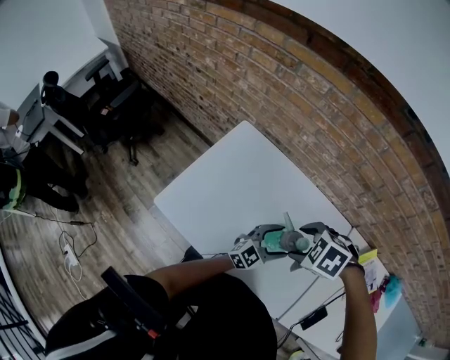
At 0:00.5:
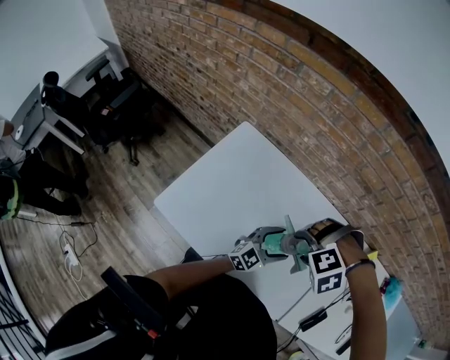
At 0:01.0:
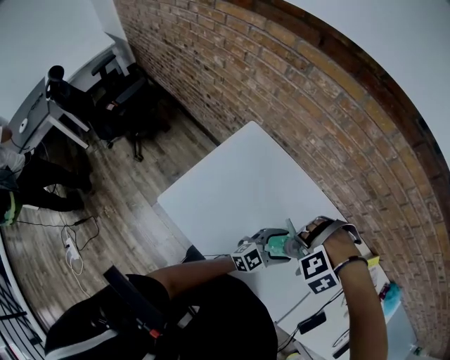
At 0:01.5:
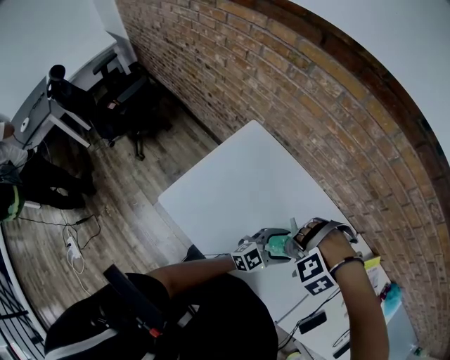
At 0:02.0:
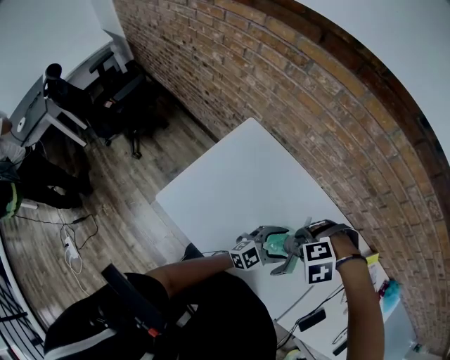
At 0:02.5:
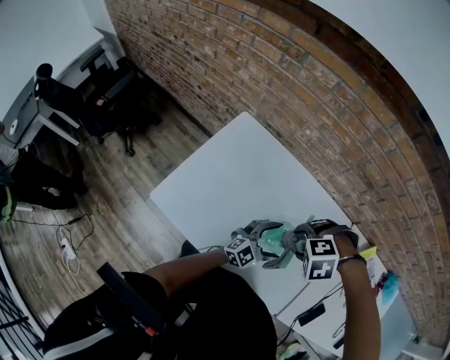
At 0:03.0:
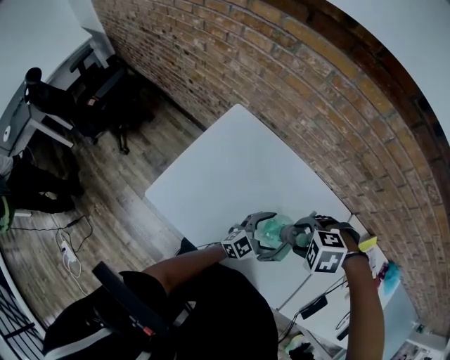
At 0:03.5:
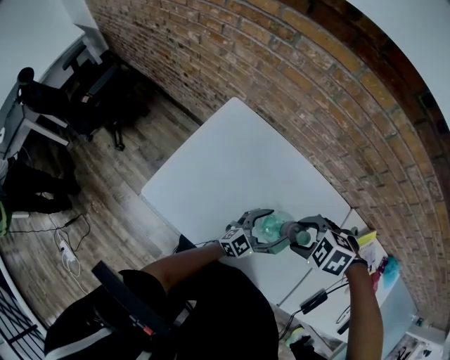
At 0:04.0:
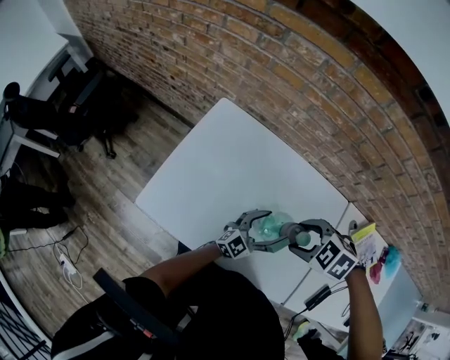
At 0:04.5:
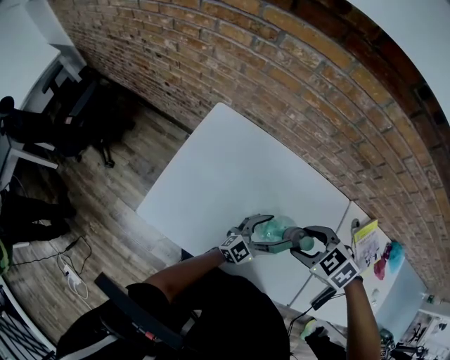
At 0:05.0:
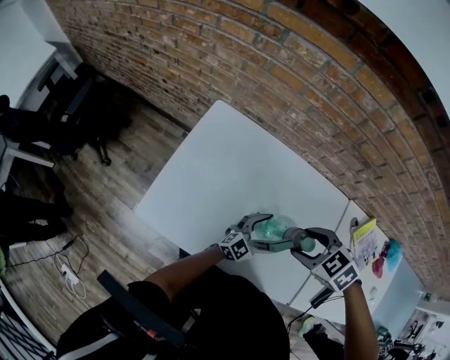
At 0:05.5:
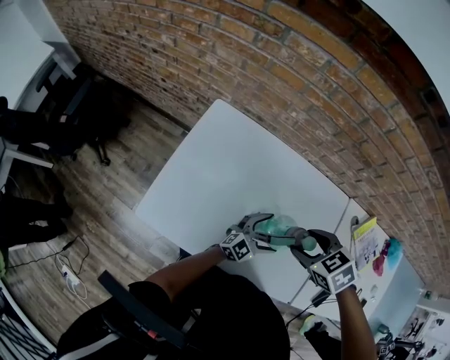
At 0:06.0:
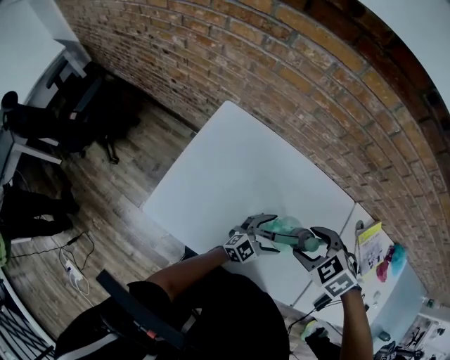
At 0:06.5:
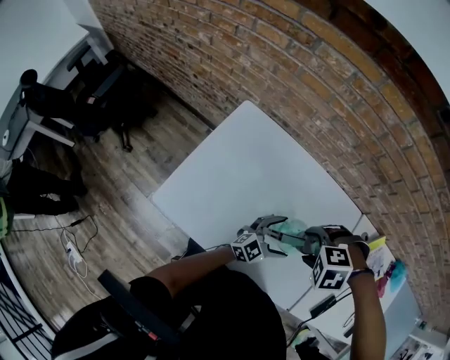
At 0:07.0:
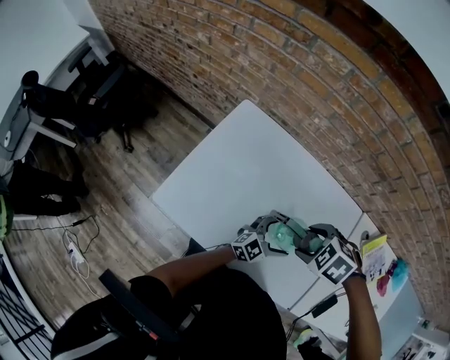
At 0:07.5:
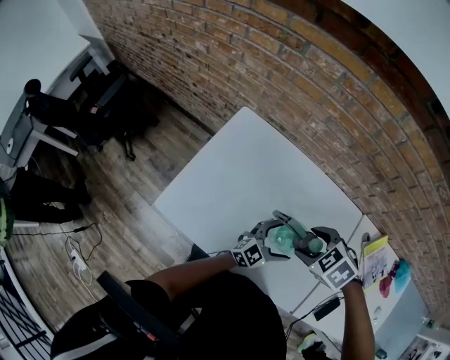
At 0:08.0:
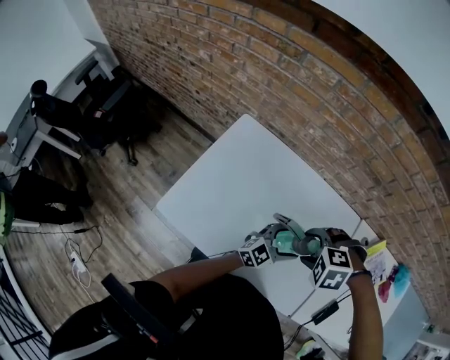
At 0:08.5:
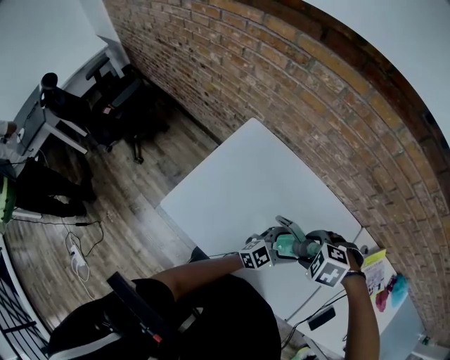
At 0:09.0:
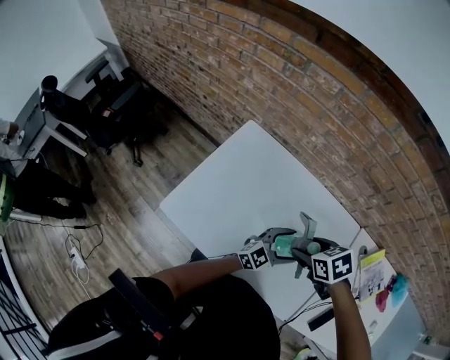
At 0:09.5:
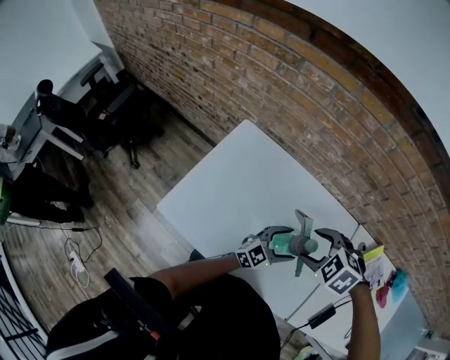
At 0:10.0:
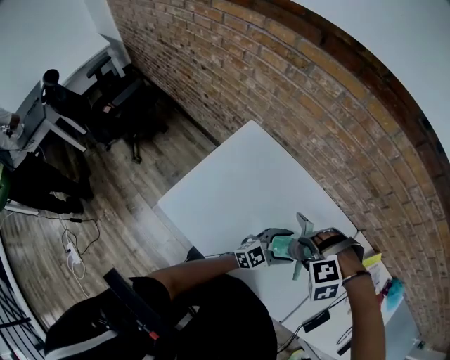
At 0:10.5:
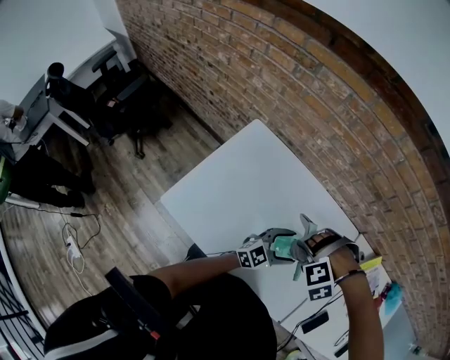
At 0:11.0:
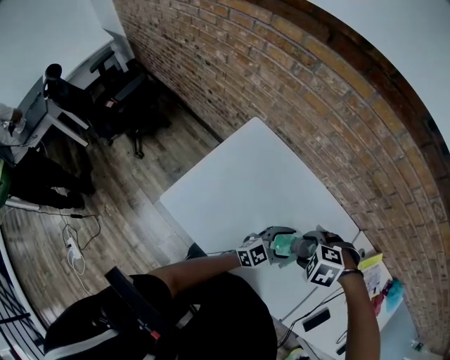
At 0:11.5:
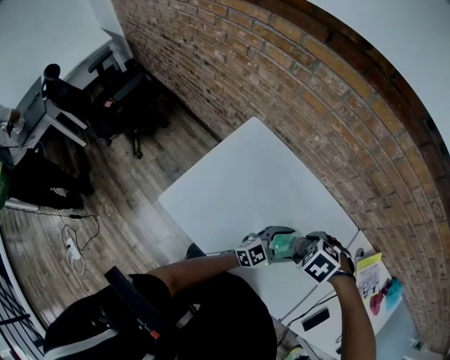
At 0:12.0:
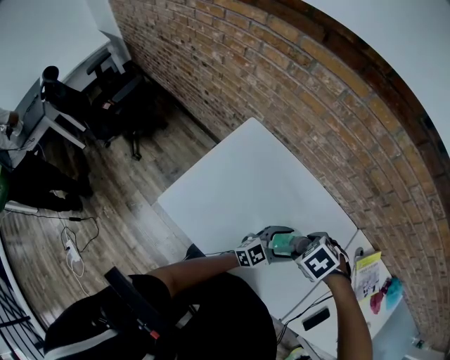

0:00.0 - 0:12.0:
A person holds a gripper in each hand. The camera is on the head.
0:00.0 - 0:02.0: The right gripper rolls counterclockwise, seen from behind, by about 40 degrees.
0:02.0 - 0:04.0: The right gripper rolls clockwise, seen from behind, by roughly 50 degrees. Meanwhile the left gripper is displaced downward by about 5 cm.
0:06.0 - 0:08.0: The right gripper swivels some 40 degrees. The left gripper shifts about 5 cm upward.
0:08.0 - 0:10.0: The right gripper rotates about 30 degrees.
0:10.0 - 0:12.0: The right gripper twists approximately 60 degrees clockwise, seen from behind.

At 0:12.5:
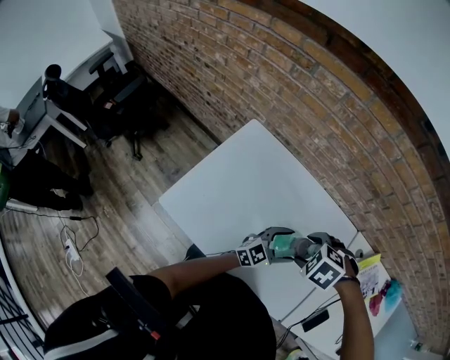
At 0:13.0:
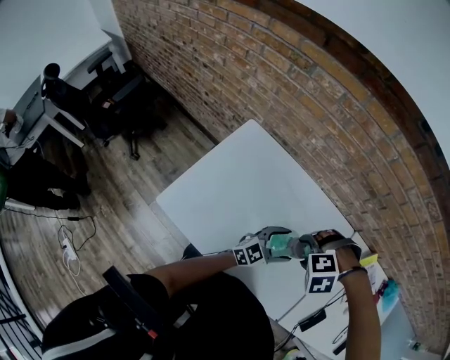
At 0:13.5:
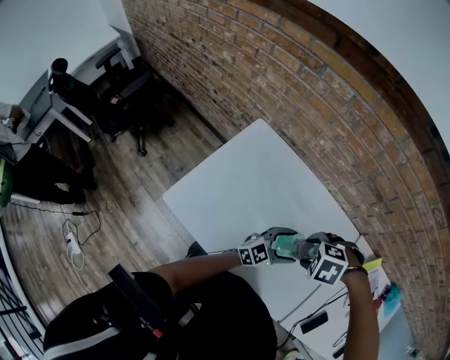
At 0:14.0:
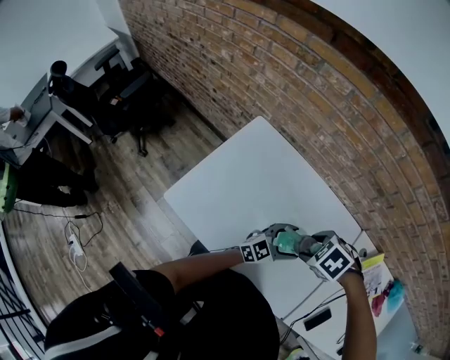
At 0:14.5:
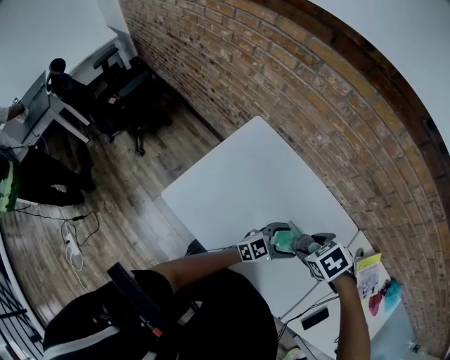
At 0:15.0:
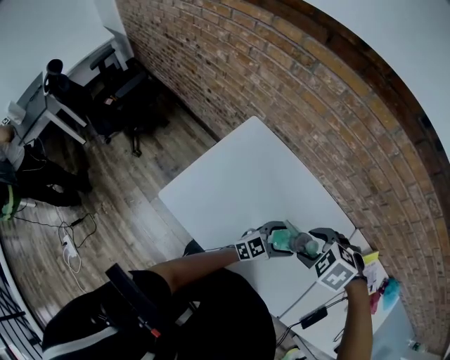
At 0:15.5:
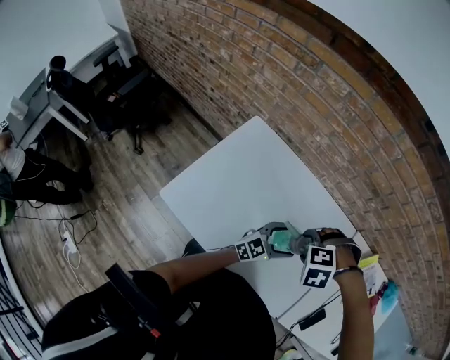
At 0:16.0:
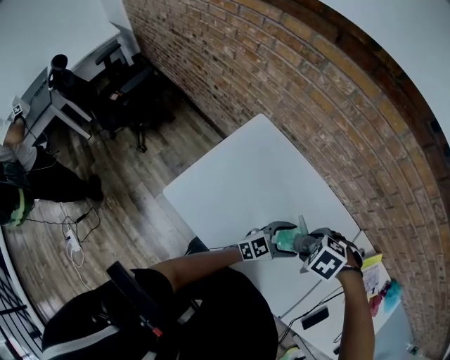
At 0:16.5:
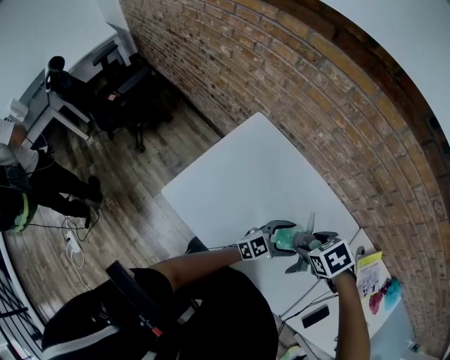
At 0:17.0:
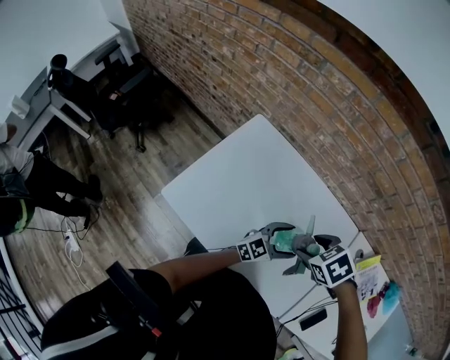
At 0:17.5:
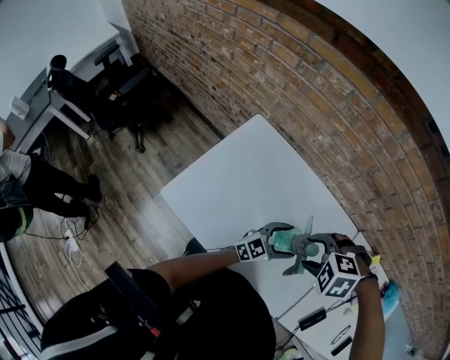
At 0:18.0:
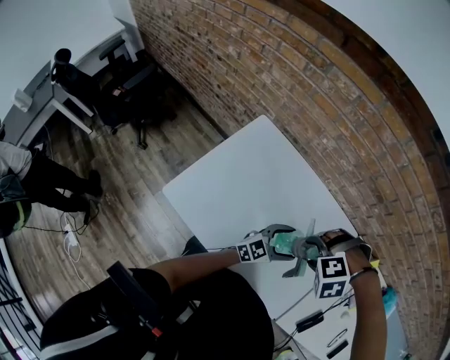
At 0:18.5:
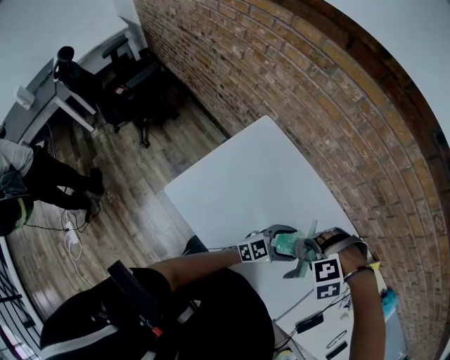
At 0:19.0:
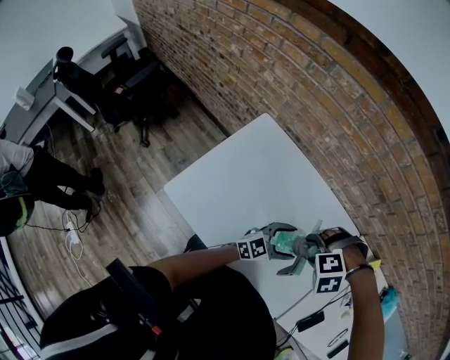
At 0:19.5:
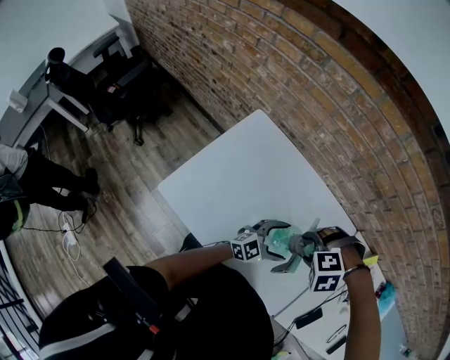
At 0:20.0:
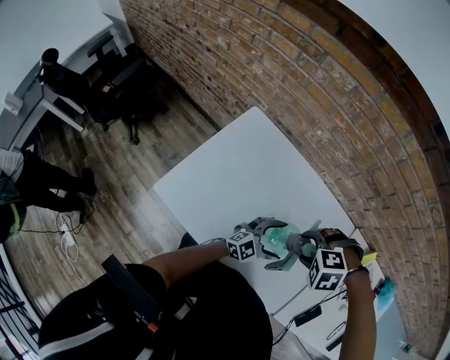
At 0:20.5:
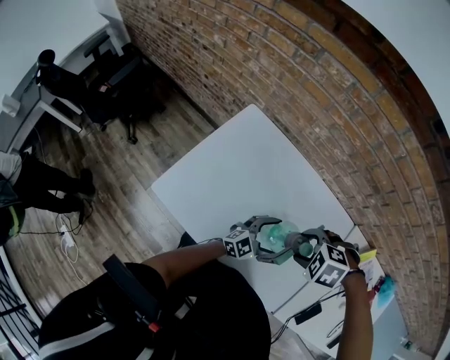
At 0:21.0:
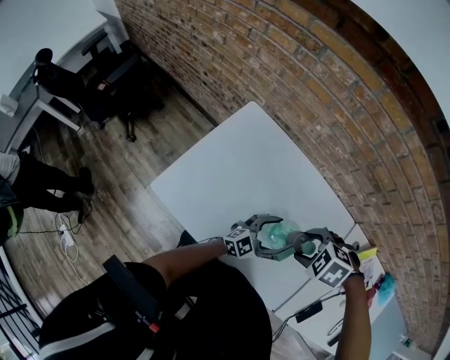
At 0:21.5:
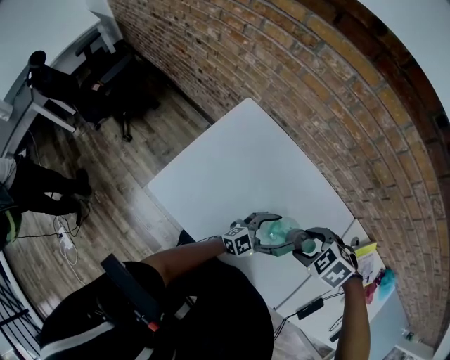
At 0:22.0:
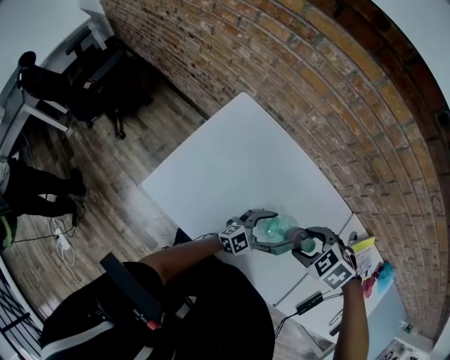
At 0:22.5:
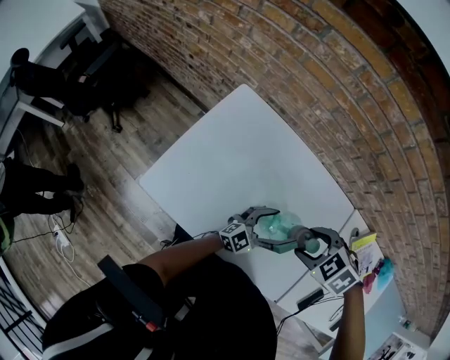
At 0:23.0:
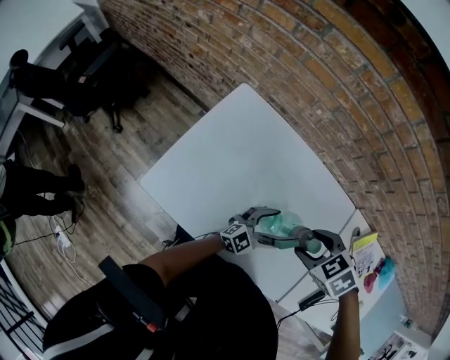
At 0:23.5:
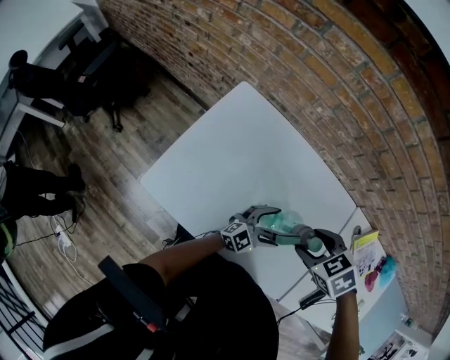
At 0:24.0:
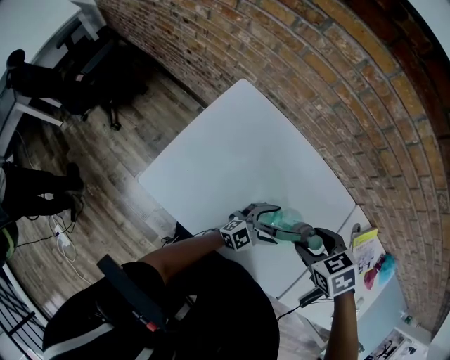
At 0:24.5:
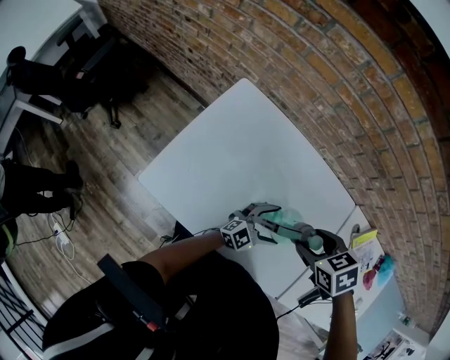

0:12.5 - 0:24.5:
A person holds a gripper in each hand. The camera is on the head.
0:12.5 - 0:14.5: The right gripper rotates some 20 degrees.
0:16.5 - 0:18.5: The right gripper rotates around the line of its fingers by about 80 degrees, counterclockwise from behind.
0:18.5 - 0:20.5: The right gripper rotates around the line of its fingers by some 40 degrees, clockwise from behind.
0:20.5 - 0:22.5: The right gripper rotates approximately 20 degrees.
0:22.5 - 0:24.5: The right gripper rotates some 30 degrees.

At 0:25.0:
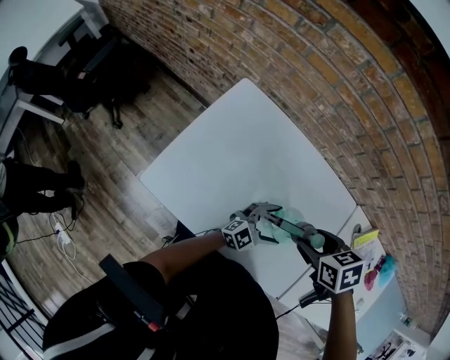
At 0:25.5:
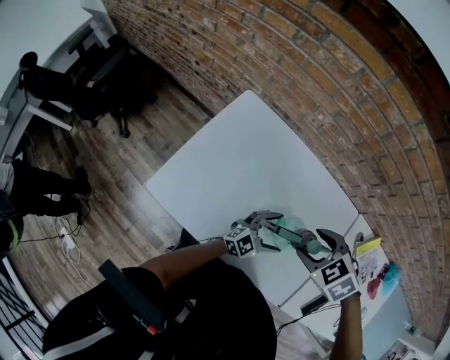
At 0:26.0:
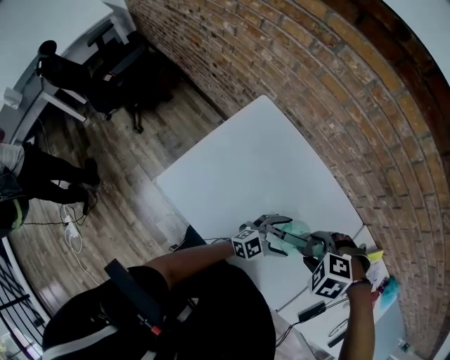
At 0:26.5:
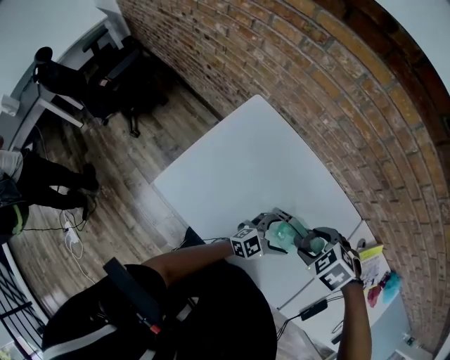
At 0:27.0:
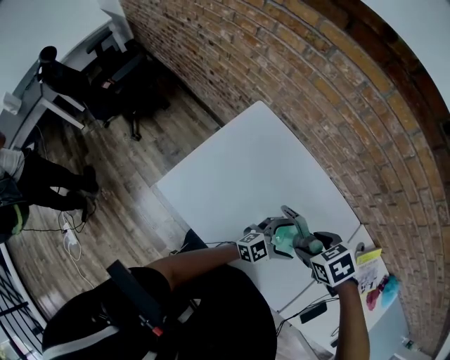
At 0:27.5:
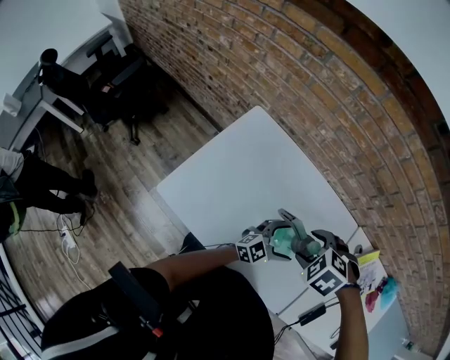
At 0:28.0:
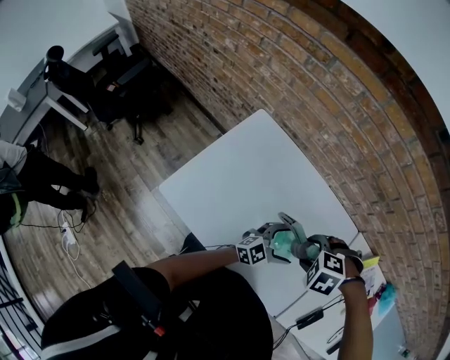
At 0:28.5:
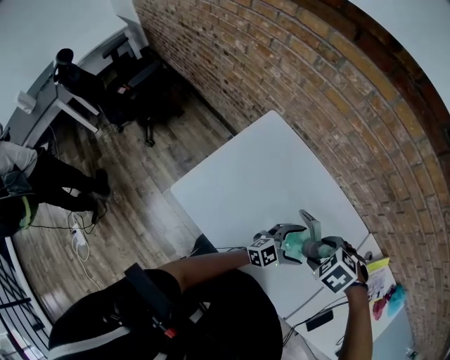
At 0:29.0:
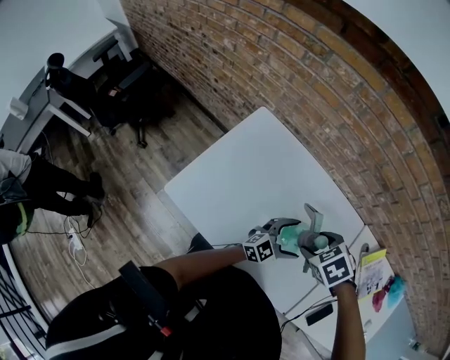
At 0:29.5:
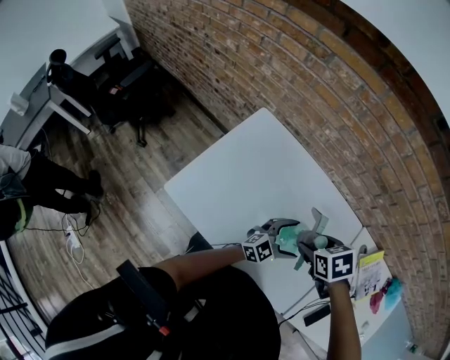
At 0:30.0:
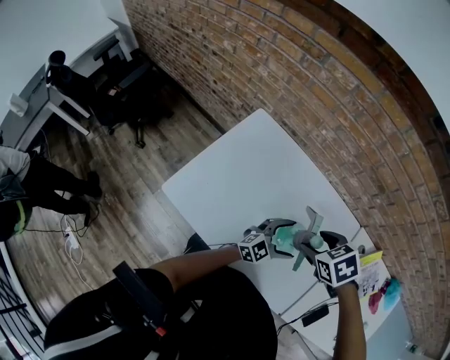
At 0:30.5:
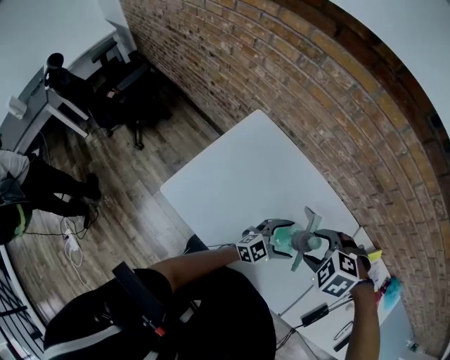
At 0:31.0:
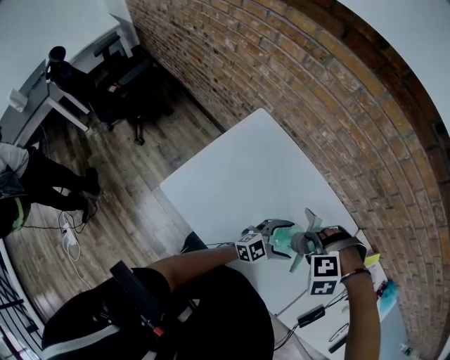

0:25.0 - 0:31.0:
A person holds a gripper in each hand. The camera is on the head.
0:25.0 - 0:27.0: The left gripper shifts approximately 5 cm upward; the right gripper rotates roughly 20 degrees.
0:29.0 - 0:31.0: The right gripper twists some 70 degrees counterclockwise, seen from behind.
